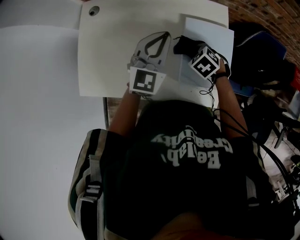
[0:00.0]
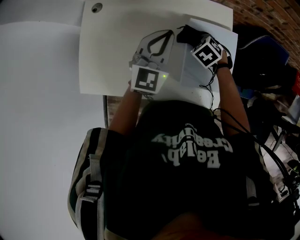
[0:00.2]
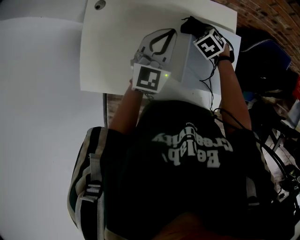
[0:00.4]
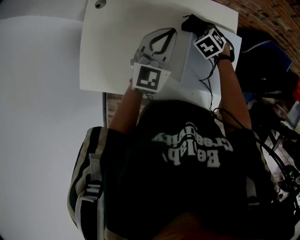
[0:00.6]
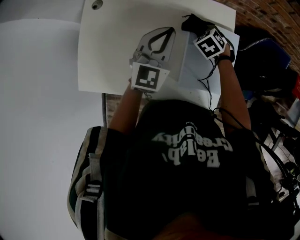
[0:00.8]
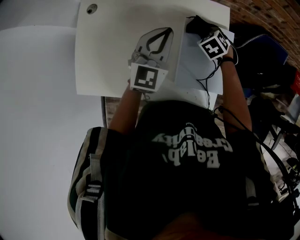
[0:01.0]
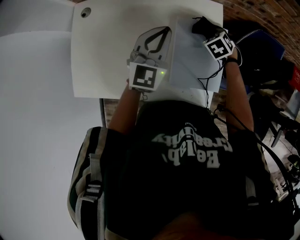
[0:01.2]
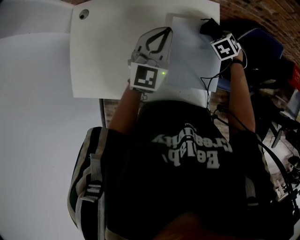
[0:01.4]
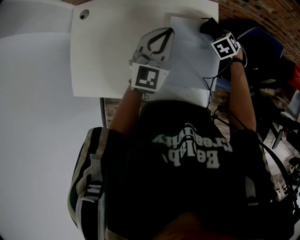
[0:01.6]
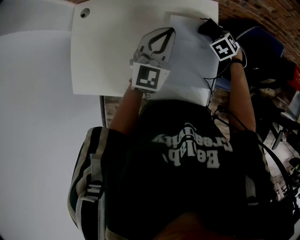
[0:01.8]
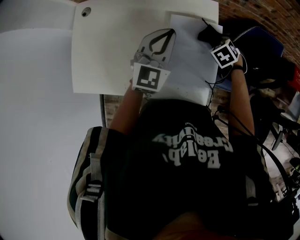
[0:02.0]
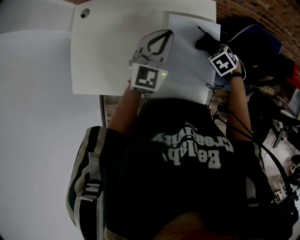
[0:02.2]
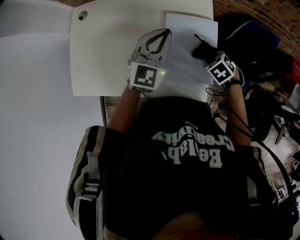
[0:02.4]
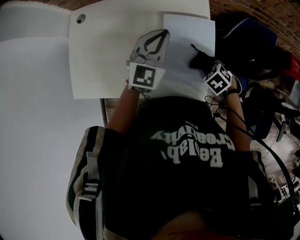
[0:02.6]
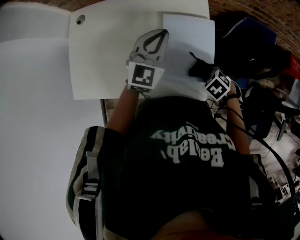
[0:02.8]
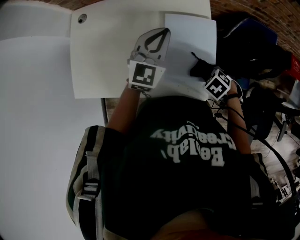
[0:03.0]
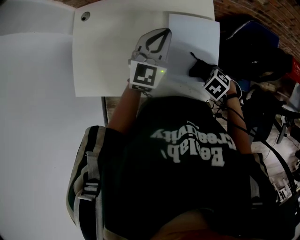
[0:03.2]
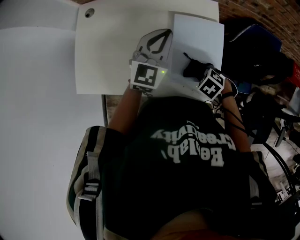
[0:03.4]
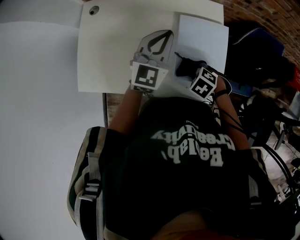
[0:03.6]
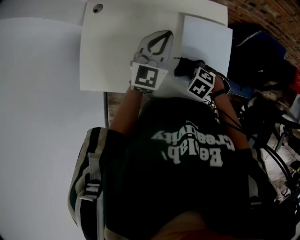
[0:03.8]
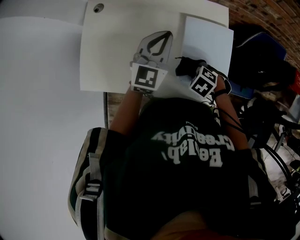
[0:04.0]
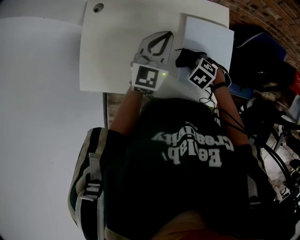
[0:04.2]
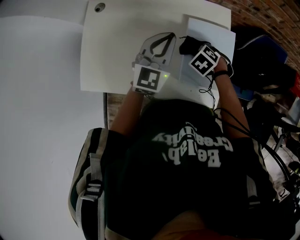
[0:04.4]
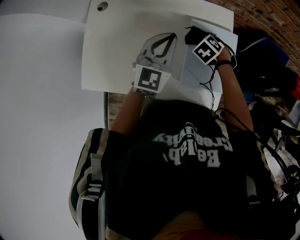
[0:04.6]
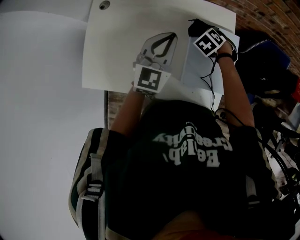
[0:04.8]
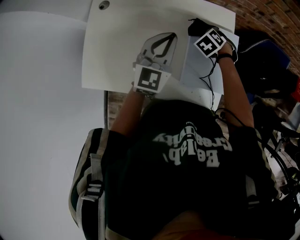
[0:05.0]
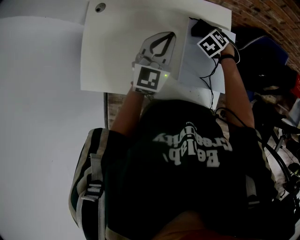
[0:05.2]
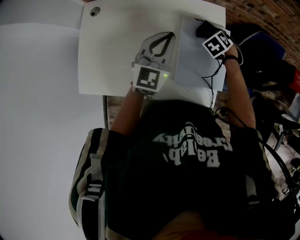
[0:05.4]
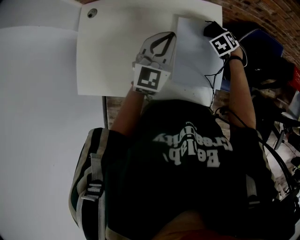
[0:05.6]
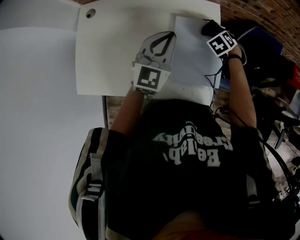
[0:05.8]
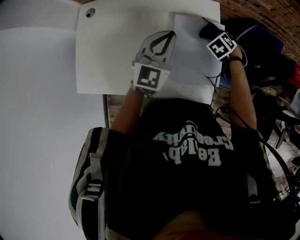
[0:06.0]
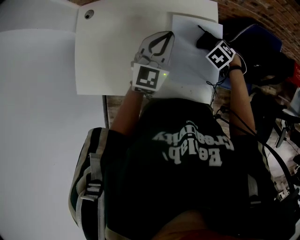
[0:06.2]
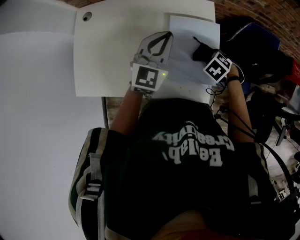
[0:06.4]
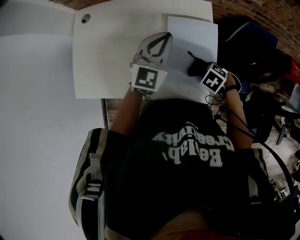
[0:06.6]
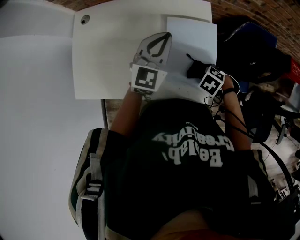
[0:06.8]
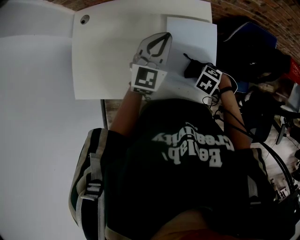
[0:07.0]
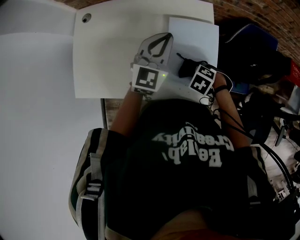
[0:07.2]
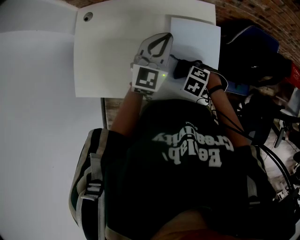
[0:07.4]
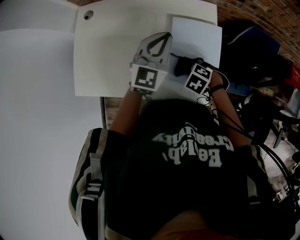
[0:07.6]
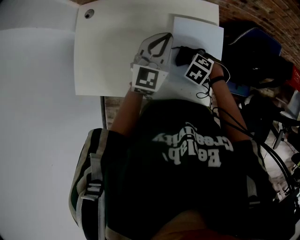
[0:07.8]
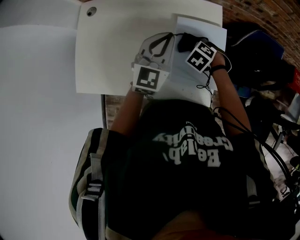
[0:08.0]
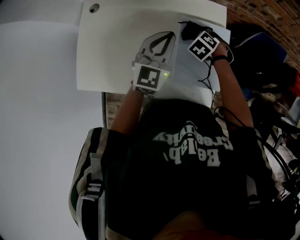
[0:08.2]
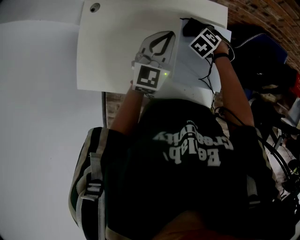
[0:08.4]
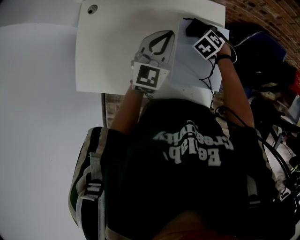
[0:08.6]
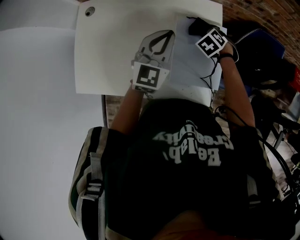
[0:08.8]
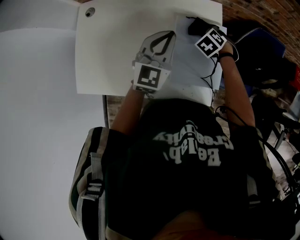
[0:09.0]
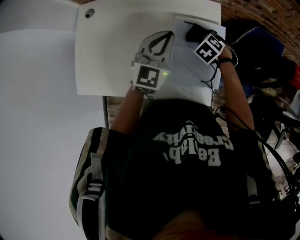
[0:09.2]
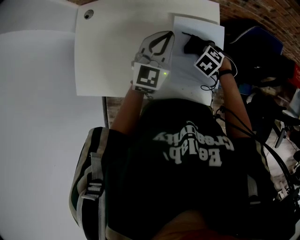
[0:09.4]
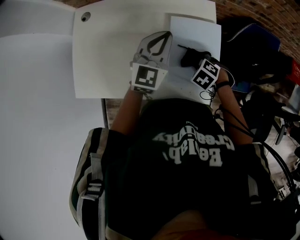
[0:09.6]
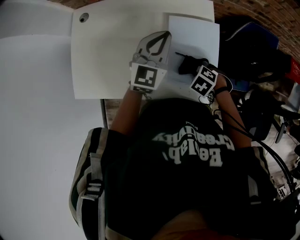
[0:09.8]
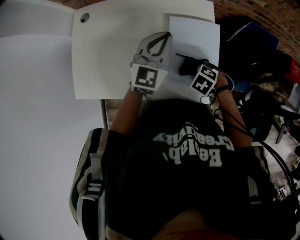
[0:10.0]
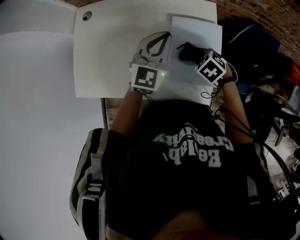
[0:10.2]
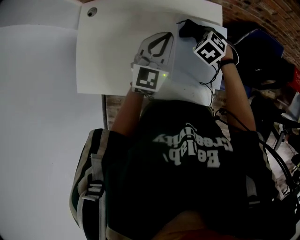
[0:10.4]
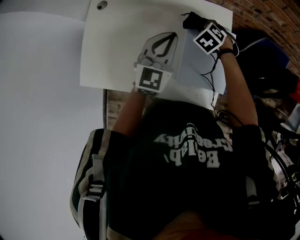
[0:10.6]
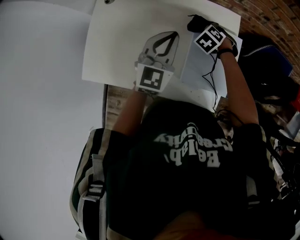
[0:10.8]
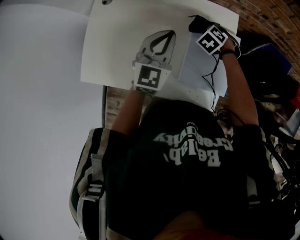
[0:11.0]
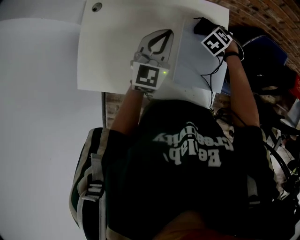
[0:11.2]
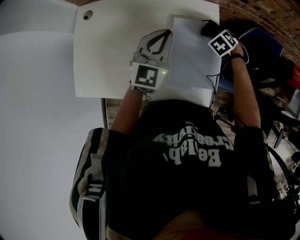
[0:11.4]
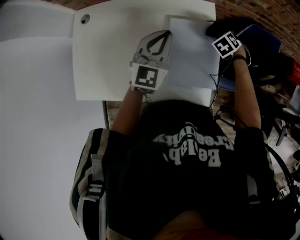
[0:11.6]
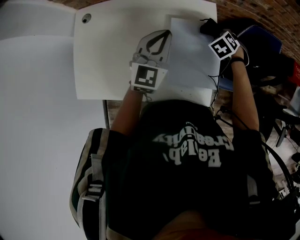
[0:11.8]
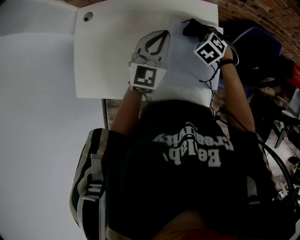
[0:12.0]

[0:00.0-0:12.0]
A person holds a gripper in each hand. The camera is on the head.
0:00.0 to 0:01.6: The right gripper shifts some 20 cm to the right and forward, and turns by about 20 degrees. The left gripper shifts approximately 5 cm to the right.
0:01.6 to 0:03.0: The right gripper ends up about 25 cm from where it was, and turns by some 20 degrees.
0:03.0 to 0:04.4: The right gripper shifts by approximately 20 cm. The left gripper ends up approximately 5 cm from where it was.
0:04.4 to 0:06.0: The left gripper moves about 5 cm, while the right gripper shifts by some 15 cm.
0:06.0 to 0:07.6: The right gripper ends up approximately 20 cm from where it was, and changes its angle by roughly 30 degrees.
0:07.6 to 0:09.0: The right gripper shifts by roughly 20 cm, and turns by about 20 degrees.
0:10.4 to 0:12.0: The right gripper moves left and right over about 20 cm, changing direction 2 times.

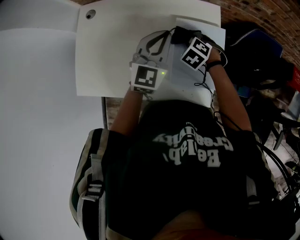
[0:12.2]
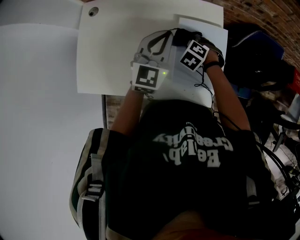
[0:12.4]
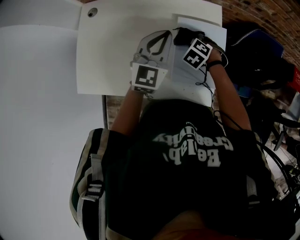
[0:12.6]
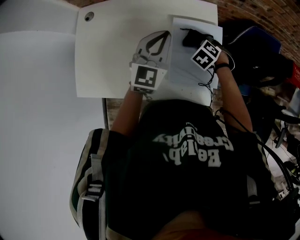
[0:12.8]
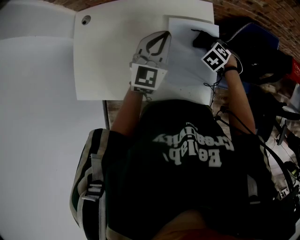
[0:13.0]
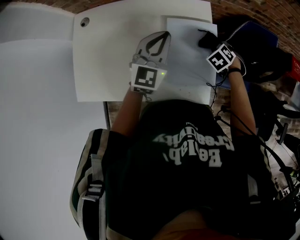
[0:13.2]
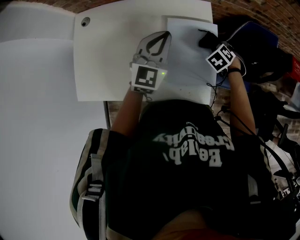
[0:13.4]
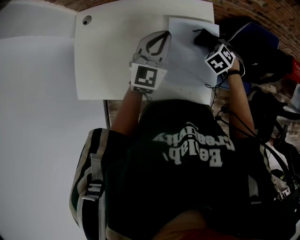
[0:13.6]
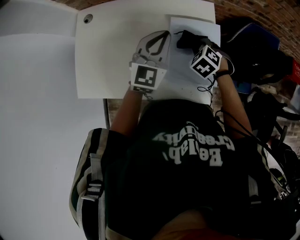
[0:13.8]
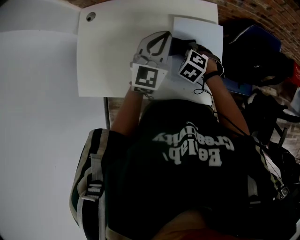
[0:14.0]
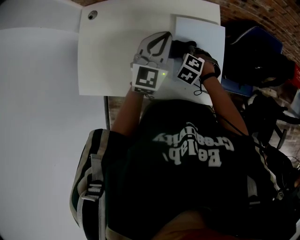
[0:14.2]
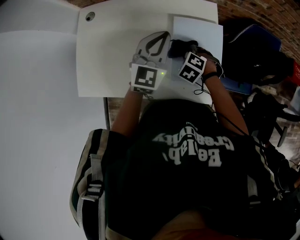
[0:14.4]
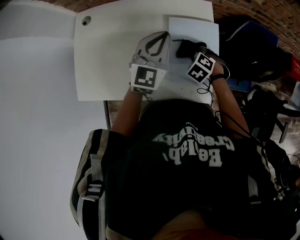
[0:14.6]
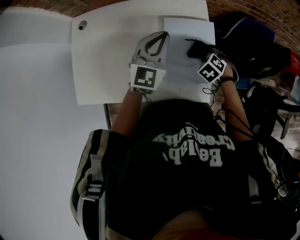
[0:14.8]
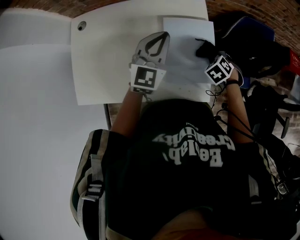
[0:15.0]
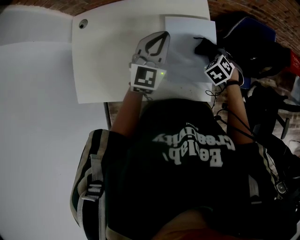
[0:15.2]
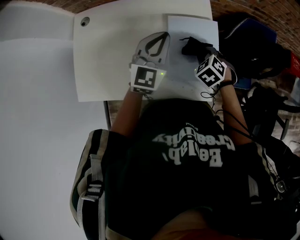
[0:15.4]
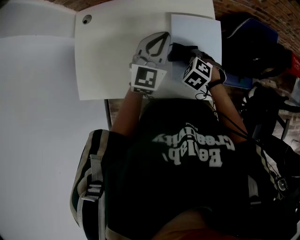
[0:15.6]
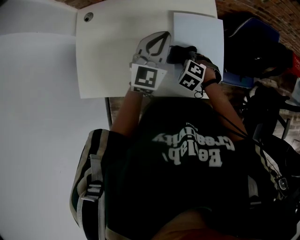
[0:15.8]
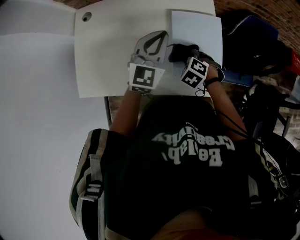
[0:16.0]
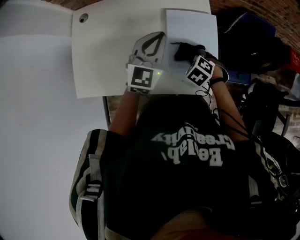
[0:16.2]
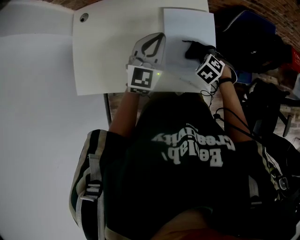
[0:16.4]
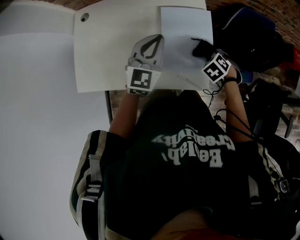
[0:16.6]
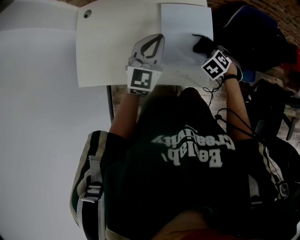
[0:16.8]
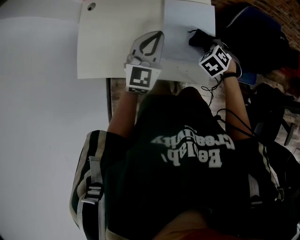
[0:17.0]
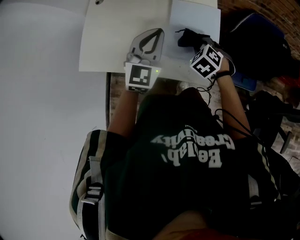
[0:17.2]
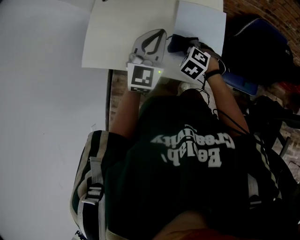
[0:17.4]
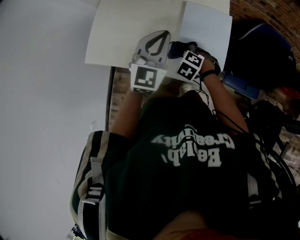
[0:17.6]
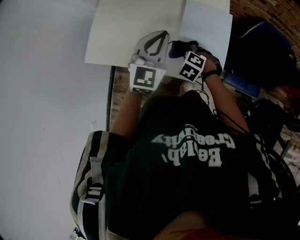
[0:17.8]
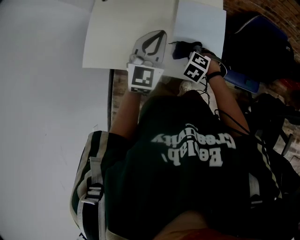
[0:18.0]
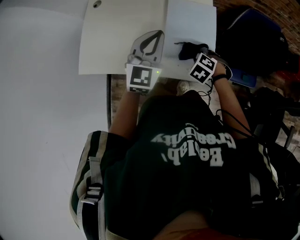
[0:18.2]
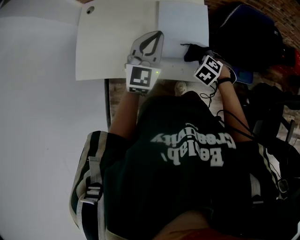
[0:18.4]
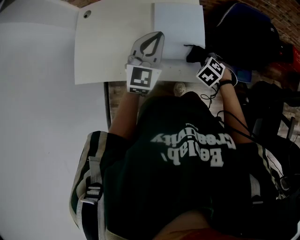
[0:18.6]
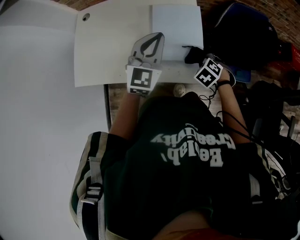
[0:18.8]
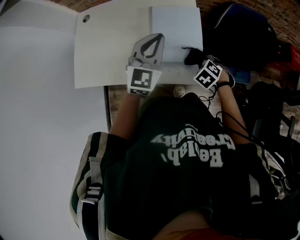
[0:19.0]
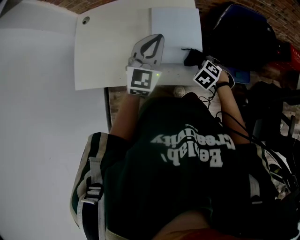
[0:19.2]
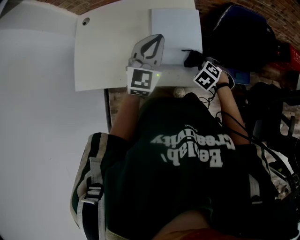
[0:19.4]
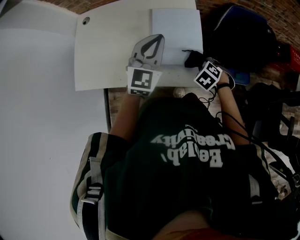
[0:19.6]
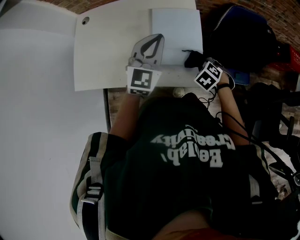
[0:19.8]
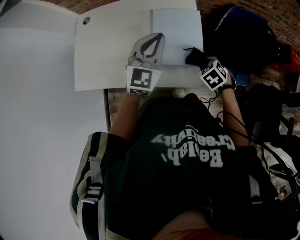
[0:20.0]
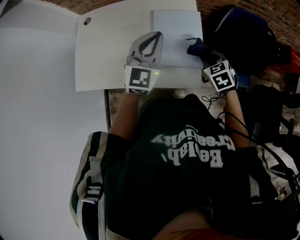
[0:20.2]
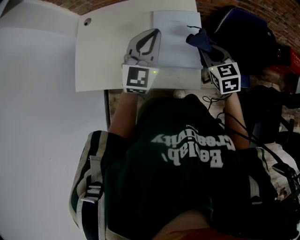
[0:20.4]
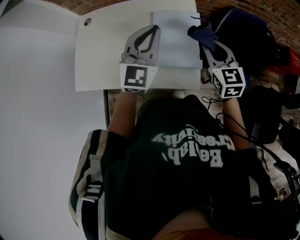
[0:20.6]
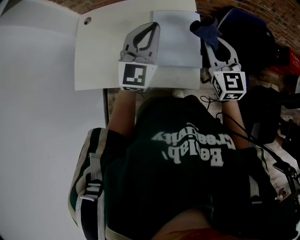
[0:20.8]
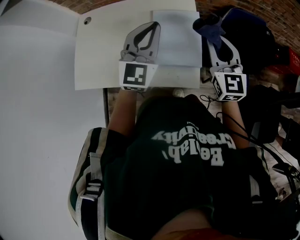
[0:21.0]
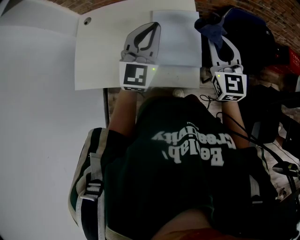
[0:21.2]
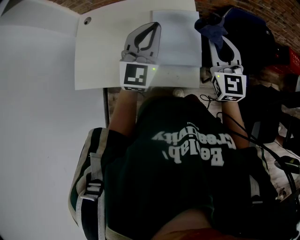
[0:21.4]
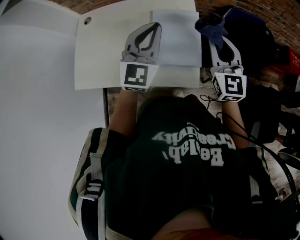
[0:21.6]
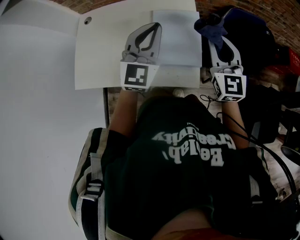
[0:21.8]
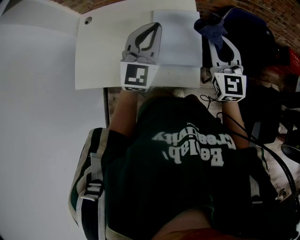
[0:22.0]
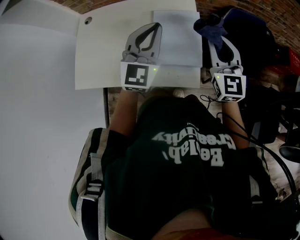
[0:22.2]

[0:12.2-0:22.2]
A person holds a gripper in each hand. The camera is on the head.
0:12.2 to 0:13.6: The right gripper travels to the right by approximately 15 cm.
0:13.6 to 0:15.0: The right gripper heads backward, covering roughly 5 cm, and moves some 15 cm to the left and comes back.
0:15.0 to 0:16.4: Both grippers travel together backward, some 5 cm. The right gripper reaches about 15 cm to the left, then returns.
0:16.4 to 0:18.0: The left gripper moves roughly 10 cm, while the right gripper changes place by approximately 10 cm, and turns by some 20 degrees.
0:18.0 to 0:19.4: The right gripper travels to the right by some 15 cm. The left gripper travels to the right by approximately 10 cm.
0:19.4 to 0:20.8: The left gripper travels upward by approximately 5 cm, while the right gripper goes roughly 25 cm upward, and tips its fingers upward by roughly 60 degrees.
0:20.8 to 0:22.2: There are only small adjustments of the grippers.

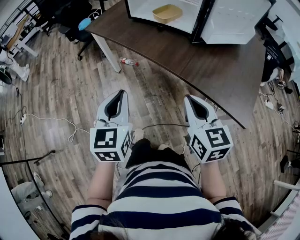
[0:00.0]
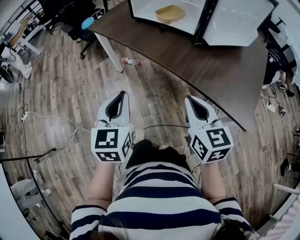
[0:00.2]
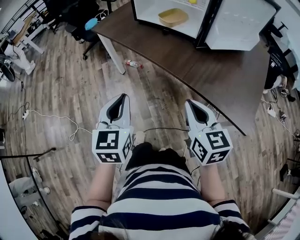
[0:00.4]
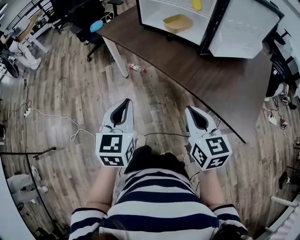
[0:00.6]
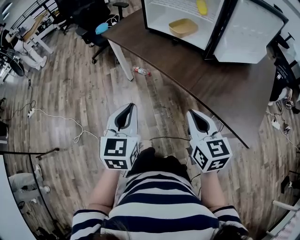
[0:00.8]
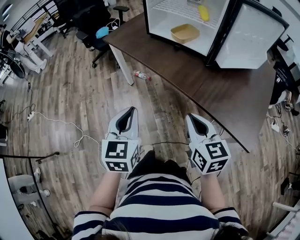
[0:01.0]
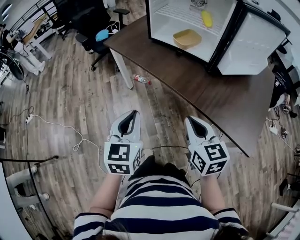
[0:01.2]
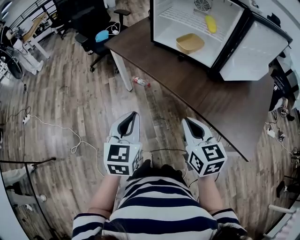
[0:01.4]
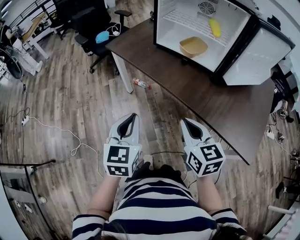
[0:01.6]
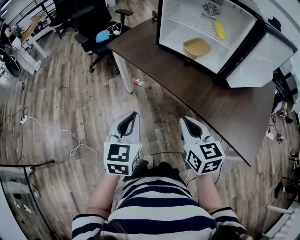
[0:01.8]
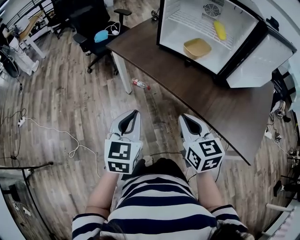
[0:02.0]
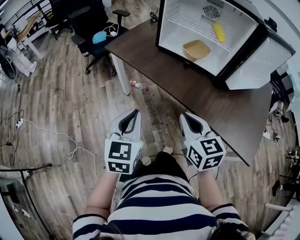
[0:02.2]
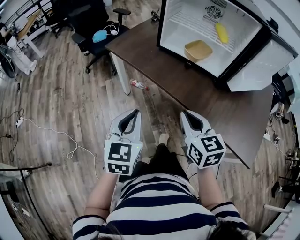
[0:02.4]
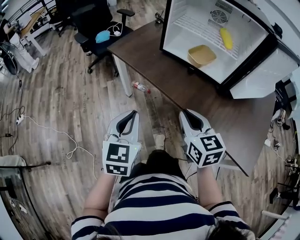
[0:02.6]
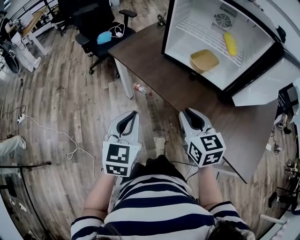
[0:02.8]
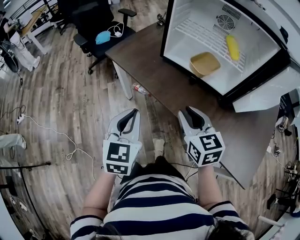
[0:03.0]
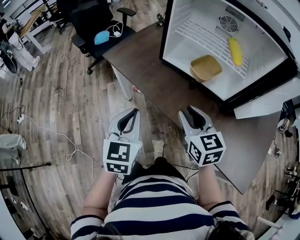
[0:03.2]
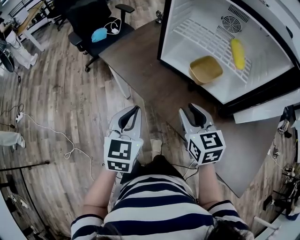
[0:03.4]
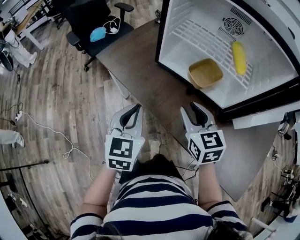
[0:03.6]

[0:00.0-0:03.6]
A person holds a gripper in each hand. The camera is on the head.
0:00.0 to 0:01.8: Both grippers travel together forward and to the left, approximately 15 cm.
0:01.8 to 0:03.6: Both grippers travel together forward, roughly 25 cm. The right gripper opens.
